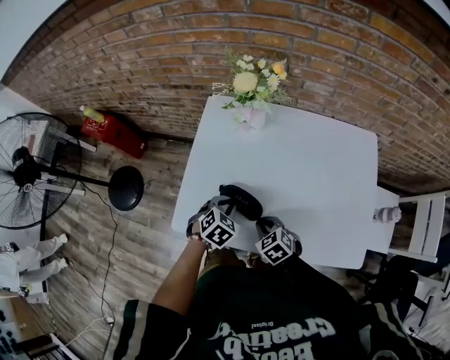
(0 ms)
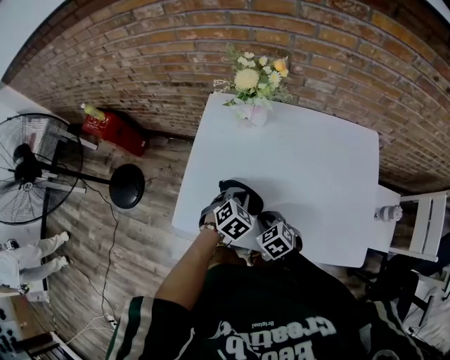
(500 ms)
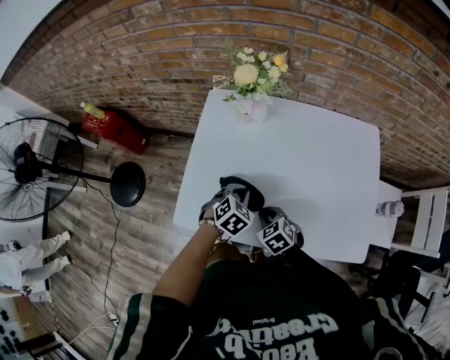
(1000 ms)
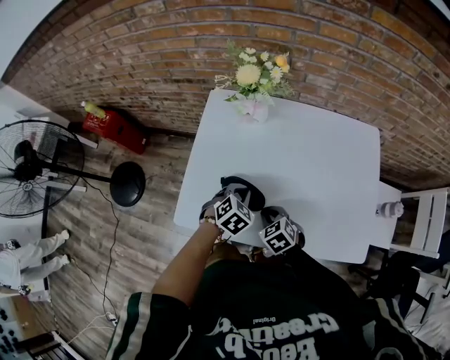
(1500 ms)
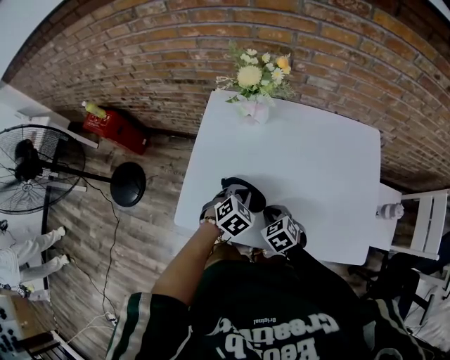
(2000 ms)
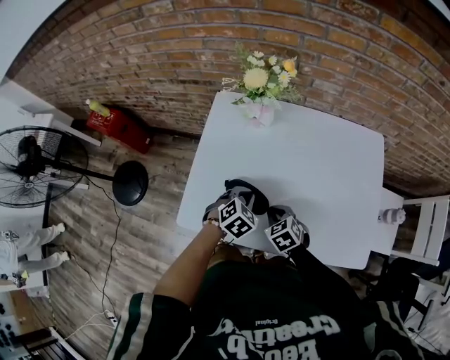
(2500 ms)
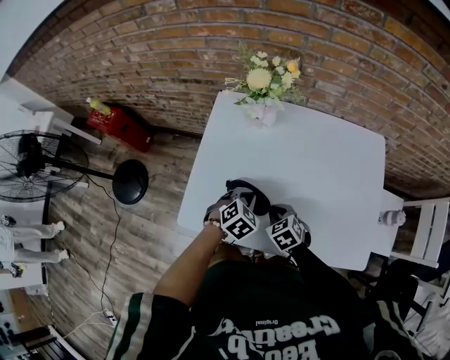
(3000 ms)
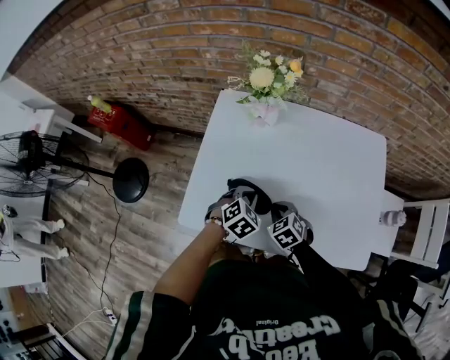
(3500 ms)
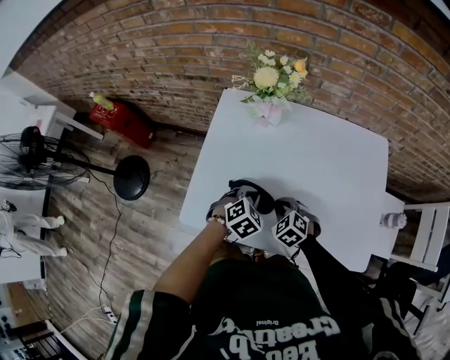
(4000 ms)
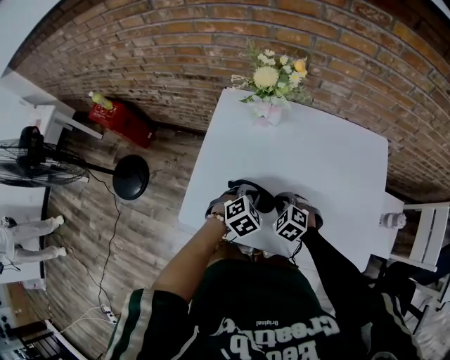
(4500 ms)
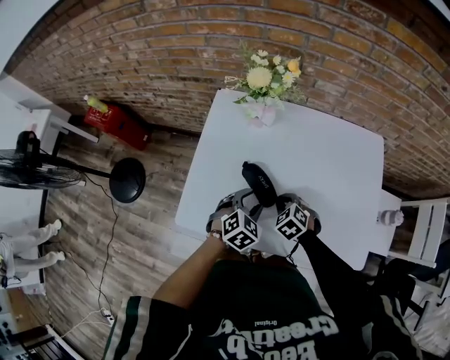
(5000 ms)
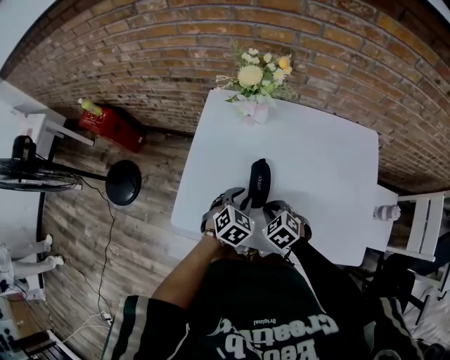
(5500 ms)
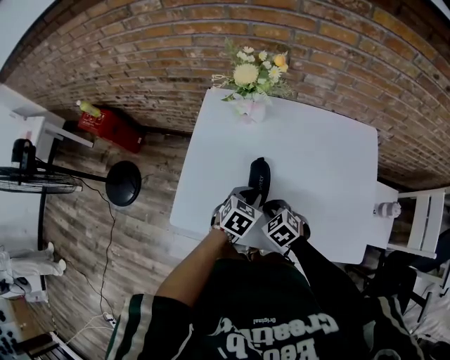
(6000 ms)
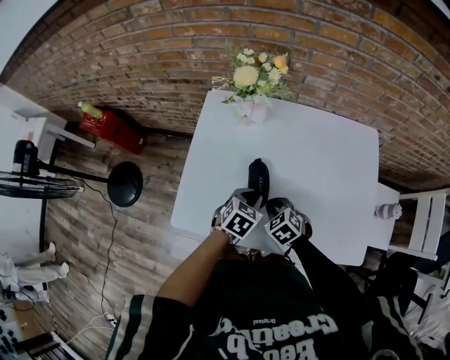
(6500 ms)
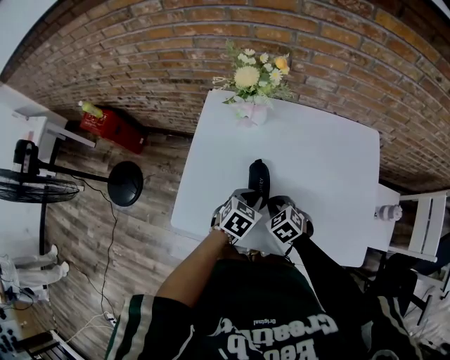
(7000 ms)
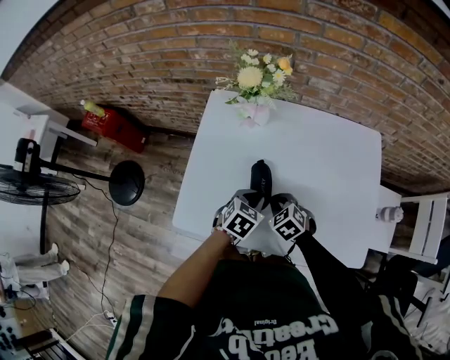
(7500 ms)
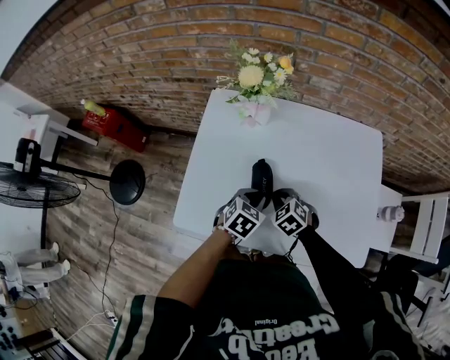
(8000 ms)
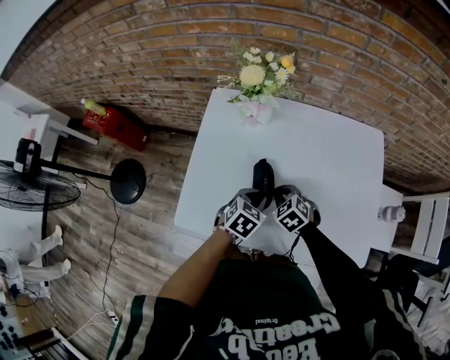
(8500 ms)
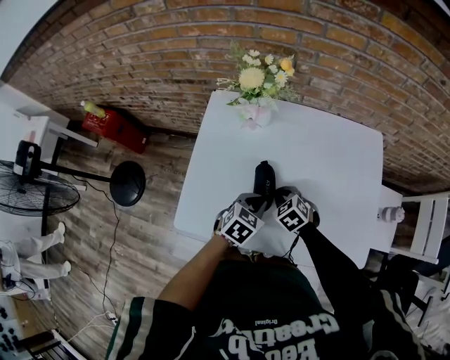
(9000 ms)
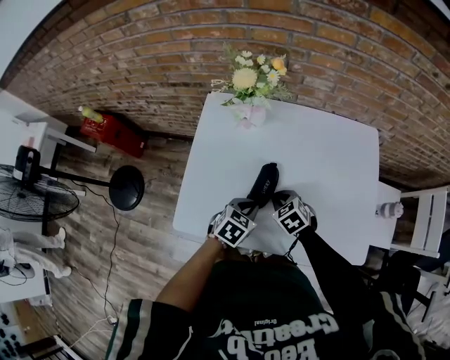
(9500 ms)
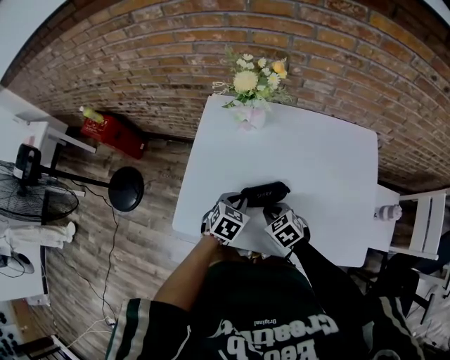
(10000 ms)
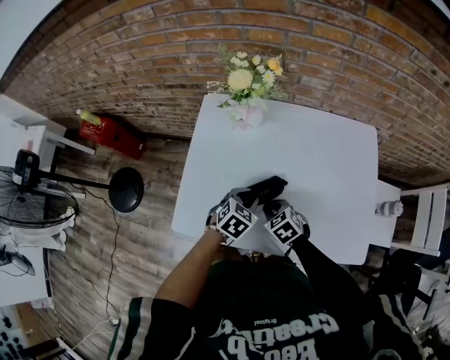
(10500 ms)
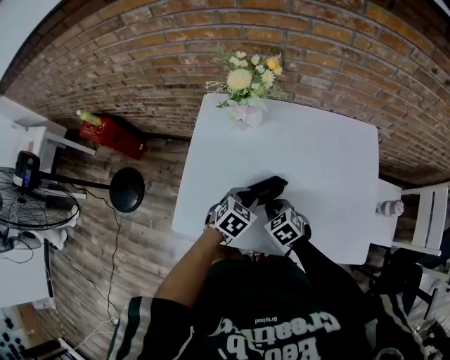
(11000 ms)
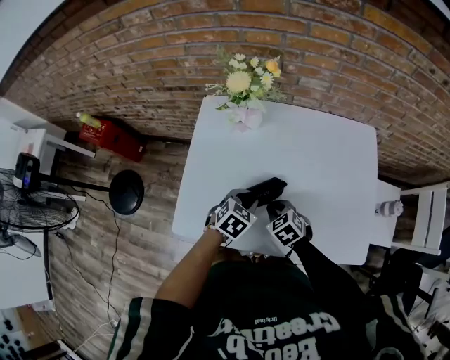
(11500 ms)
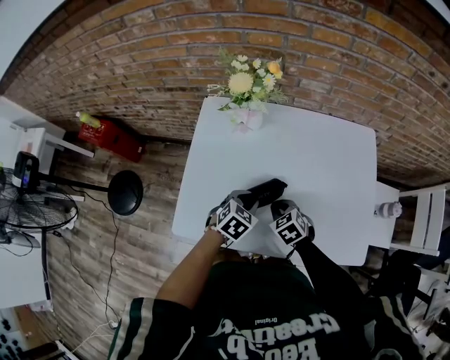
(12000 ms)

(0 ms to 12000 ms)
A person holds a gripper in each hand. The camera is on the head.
0 ms - 2000 ms: The grippers make only small movements.
2000 ms - 4000 ms: There are only small adjustments of the grippers.
4000 ms - 6000 ms: The left gripper changes its angle by roughly 20 degrees, and opens and closes again.
6000 ms - 8000 ms: The right gripper heads forward, covering about 5 cm.
8000 ms - 10000 ms: The left gripper moves to the left, approximately 5 cm. Meanwhile the right gripper ends up some 5 cm from where it was.
10000 ms - 12000 ms: The grippers move only a little.

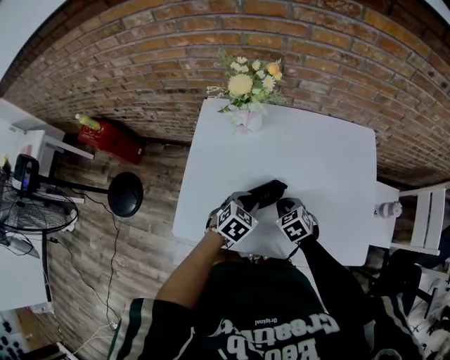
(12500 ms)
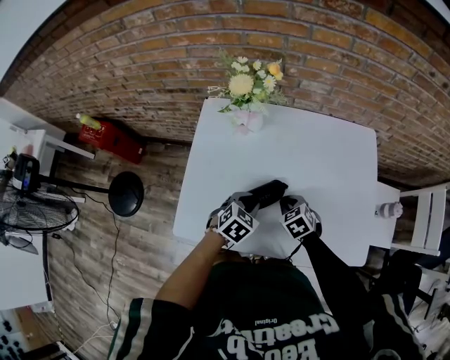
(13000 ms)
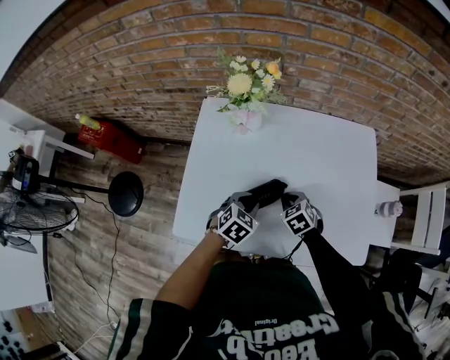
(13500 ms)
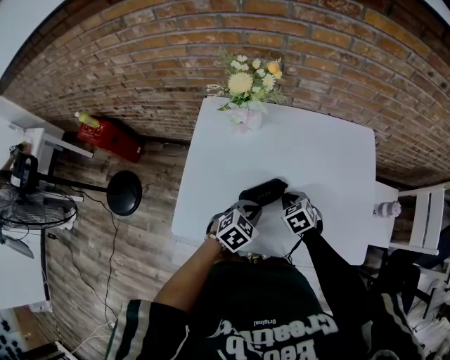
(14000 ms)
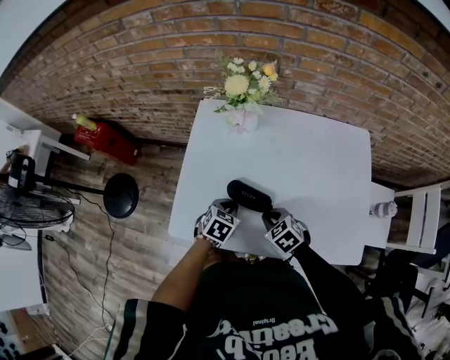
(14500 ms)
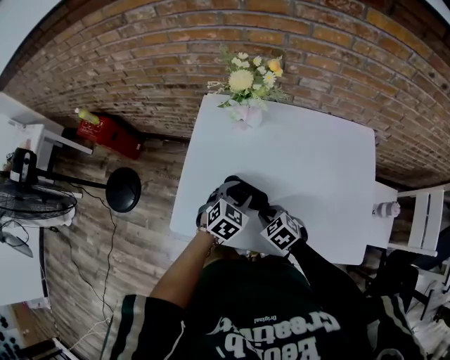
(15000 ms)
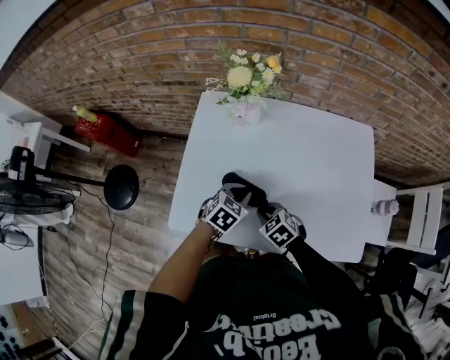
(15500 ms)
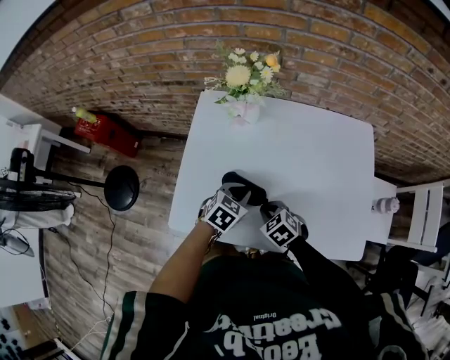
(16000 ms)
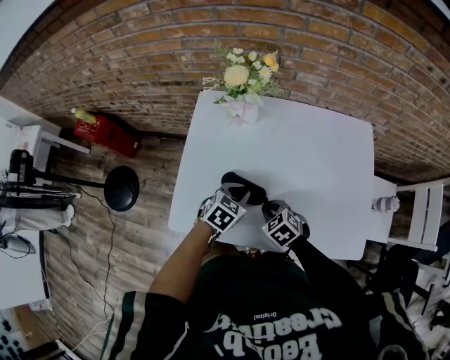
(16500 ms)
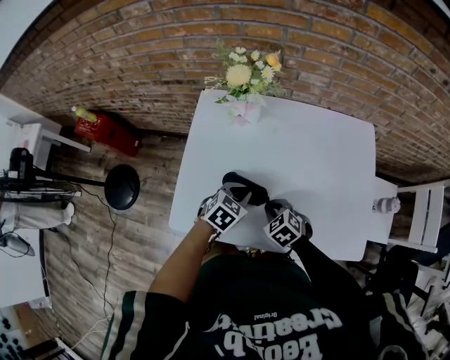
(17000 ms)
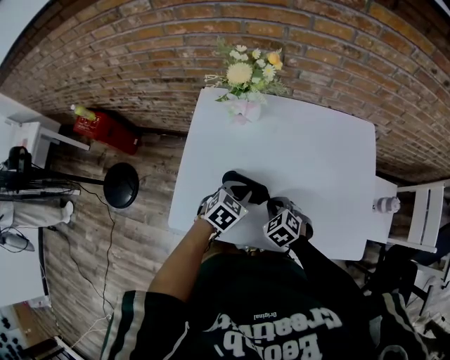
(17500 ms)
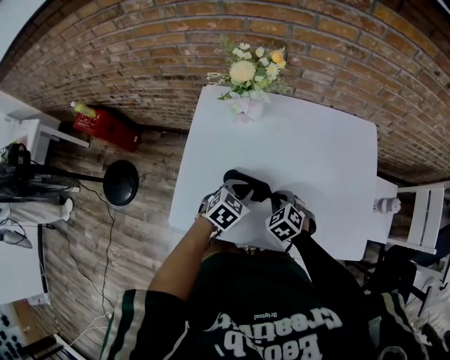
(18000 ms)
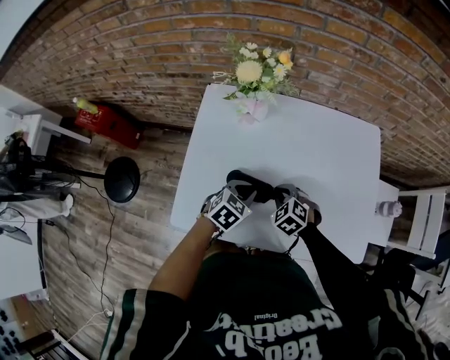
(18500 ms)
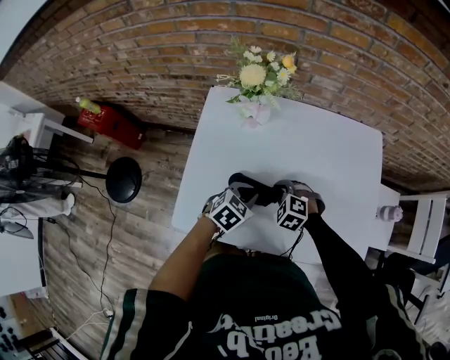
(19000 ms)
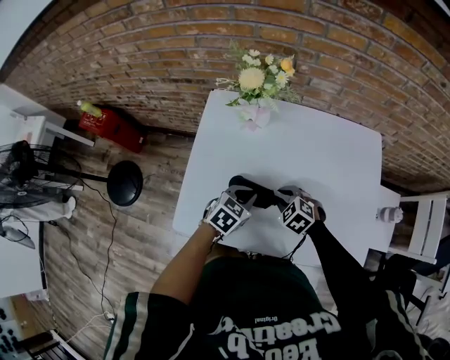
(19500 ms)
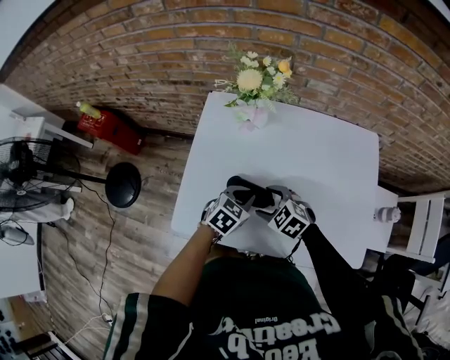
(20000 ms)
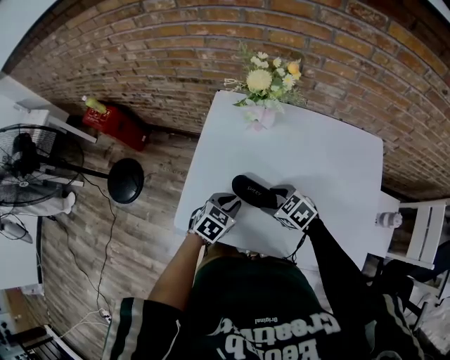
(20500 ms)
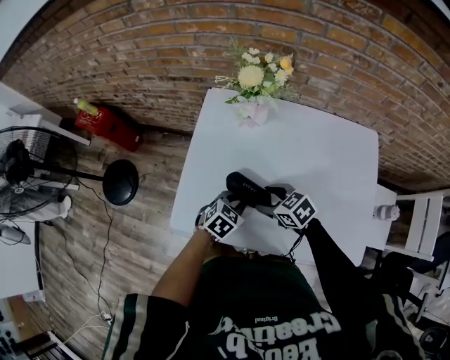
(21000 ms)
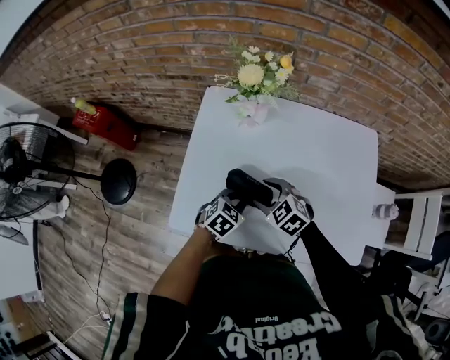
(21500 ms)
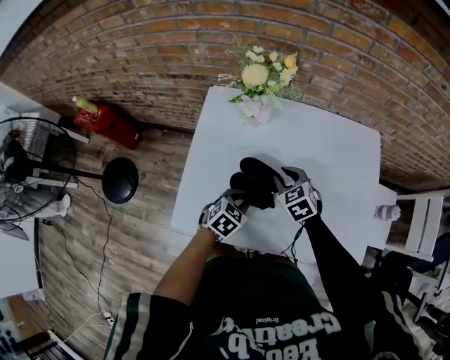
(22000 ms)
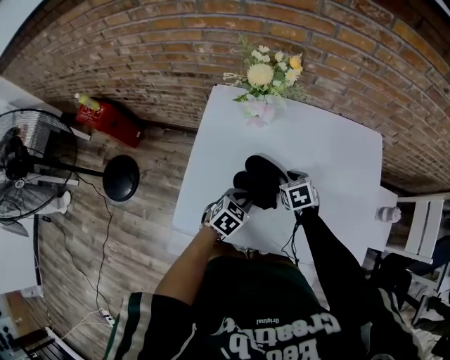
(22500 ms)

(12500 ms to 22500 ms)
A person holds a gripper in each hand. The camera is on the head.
12500 ms - 14500 ms: The right gripper is displaced backward by roughly 5 cm. Meanwhile the left gripper shifts about 5 cm to the left, and closes up.
14500 ms - 16500 ms: The left gripper moves some 5 cm, and opens, then closes once more.
16500 ms - 18500 ms: The right gripper shifts roughly 5 cm forward.
18500 ms - 20500 ms: The left gripper changes place by about 5 cm. Meanwhile the right gripper changes place by some 5 cm, turns by approximately 30 degrees, and opens its fingers.
20500 ms - 22500 ms: The right gripper moves about 10 cm, turns by approximately 40 degrees, and closes up.

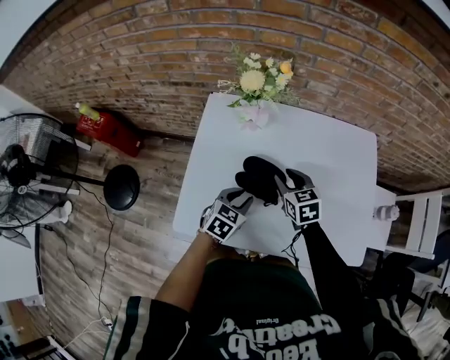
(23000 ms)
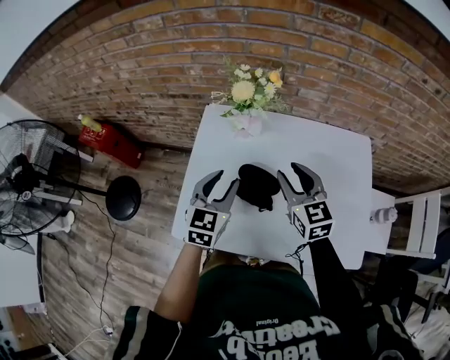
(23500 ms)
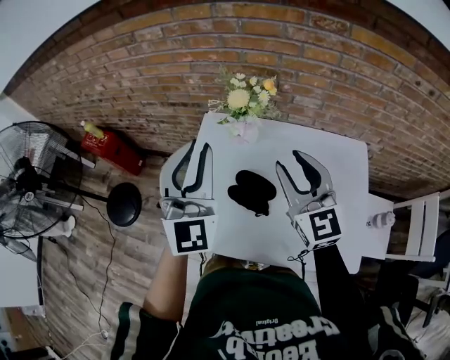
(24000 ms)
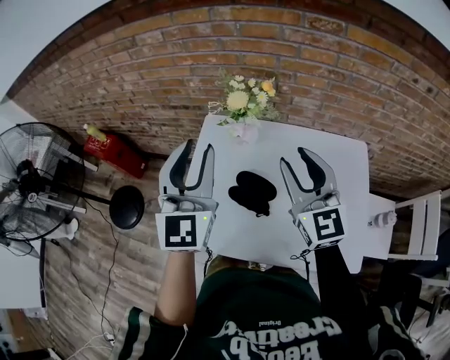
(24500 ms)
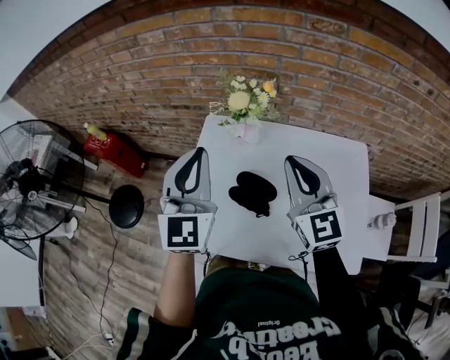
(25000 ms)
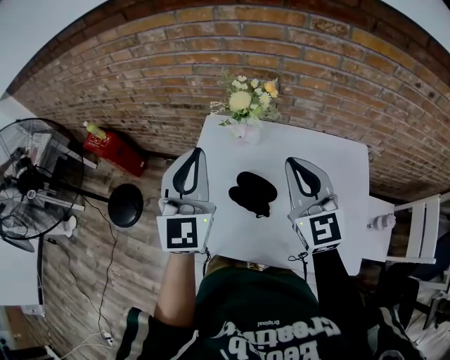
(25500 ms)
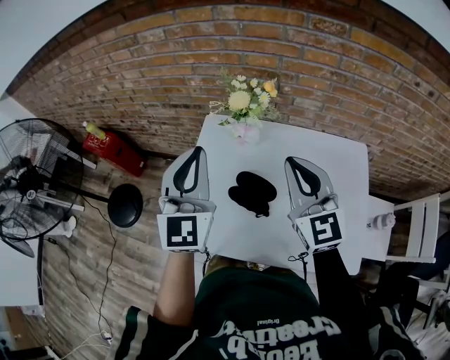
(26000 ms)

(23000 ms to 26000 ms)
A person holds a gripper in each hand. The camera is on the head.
23000 ms - 24500 ms: The two grippers go approximately 35 cm upward. The left gripper tips its fingers upward by approximately 50 degrees. Meanwhile the right gripper tilts its fingers approximately 40 degrees upward.
24500 ms - 26000 ms: The left gripper closes up. The right gripper closes.

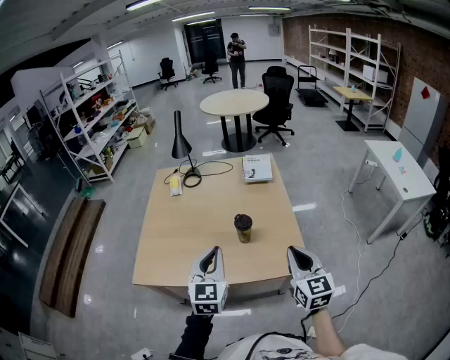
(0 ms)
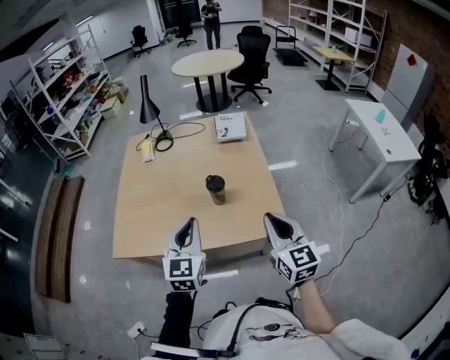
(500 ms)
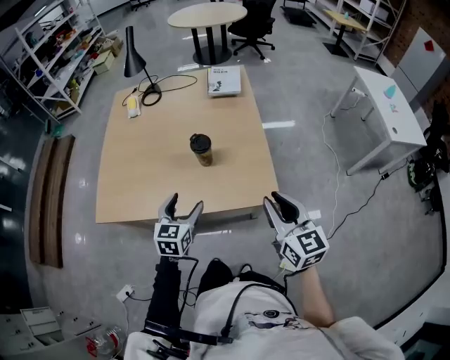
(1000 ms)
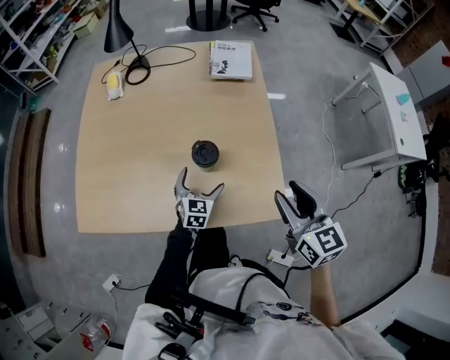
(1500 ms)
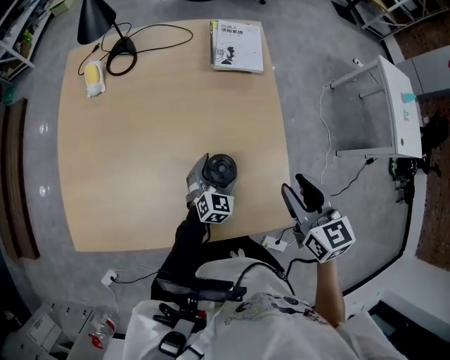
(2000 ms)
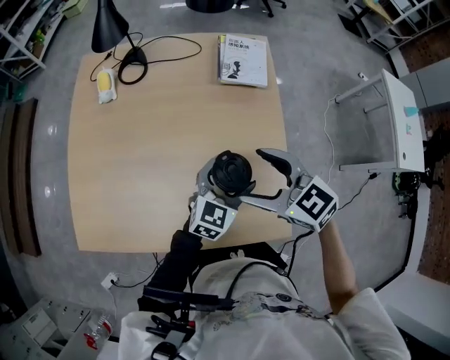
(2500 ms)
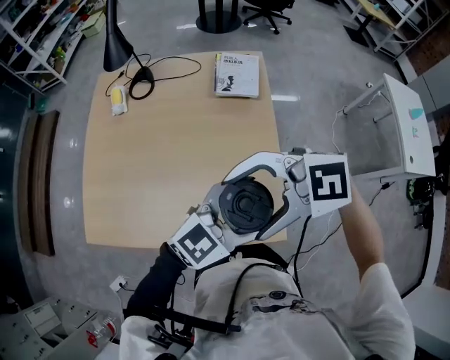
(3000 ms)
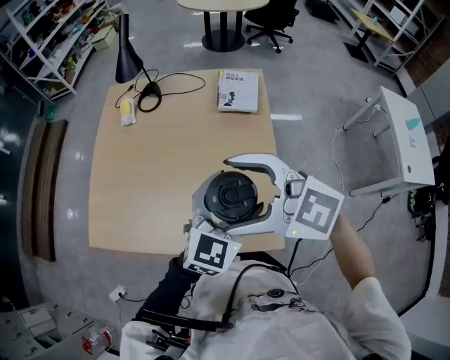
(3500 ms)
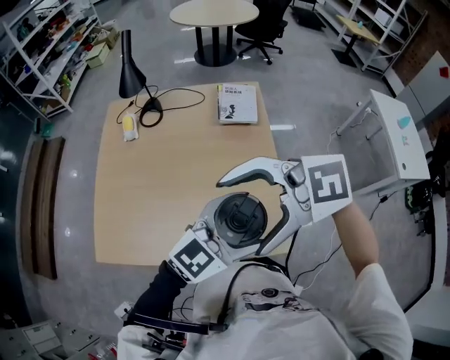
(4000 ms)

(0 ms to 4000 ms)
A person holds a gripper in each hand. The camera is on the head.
0 ms - 2000 ms: The left gripper is displaced downward and forward by approximately 40 cm, turns by some 30 degrees, and opens up; the right gripper is displaced forward and downward by roughly 25 cm, and rotates roughly 20 degrees.
2000 ms - 4000 ms: The left gripper goes roughly 40 cm upward, and rotates some 40 degrees, while the right gripper travels upward by some 20 cm, swivels approximately 90 degrees, and opens.
